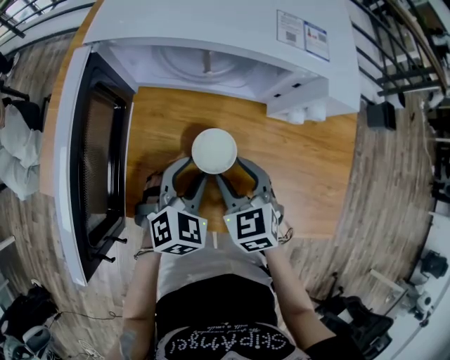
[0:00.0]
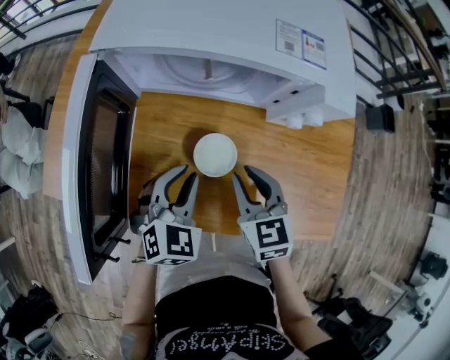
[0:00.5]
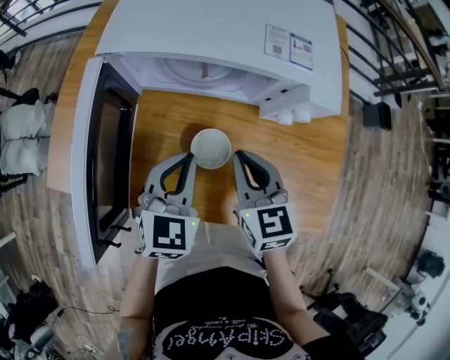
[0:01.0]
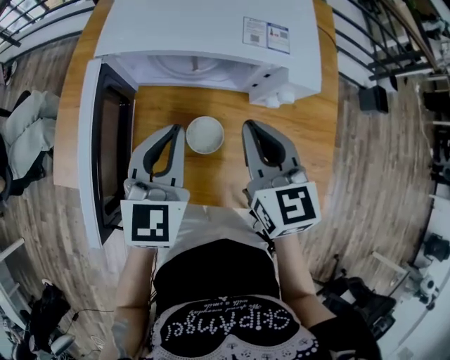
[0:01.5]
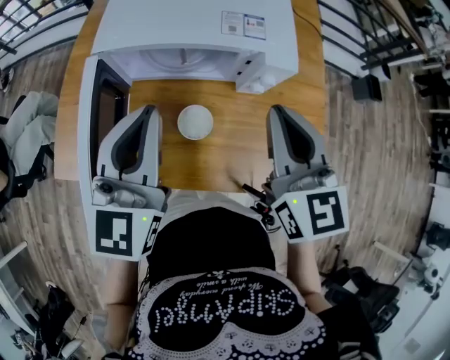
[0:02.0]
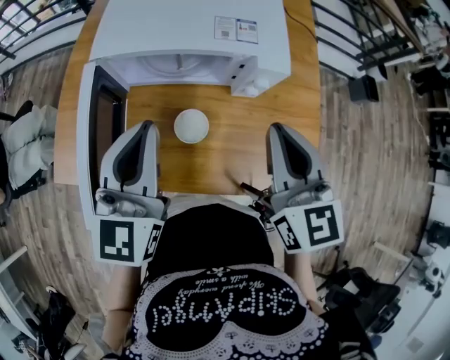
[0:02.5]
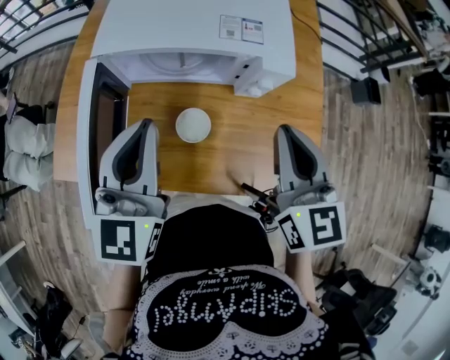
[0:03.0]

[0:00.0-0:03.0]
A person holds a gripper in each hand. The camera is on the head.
0:00.0 to 0:01.5: Both grippers travel together upward, approximately 20 cm. The right gripper rotates approximately 30 degrees, and closes its fingers. Meanwhile the left gripper changes its angle by roughly 40 degrees, and closes its fingers.
0:01.5 to 0:03.0: The left gripper travels upward by about 10 cm. Meanwhile the right gripper travels upward and to the right by approximately 10 cm.

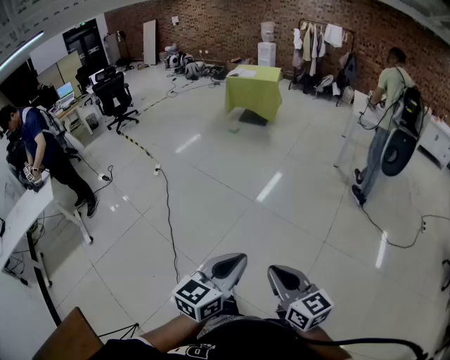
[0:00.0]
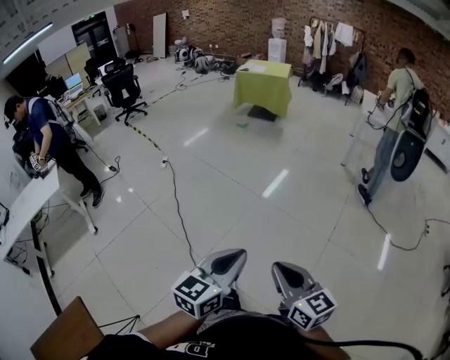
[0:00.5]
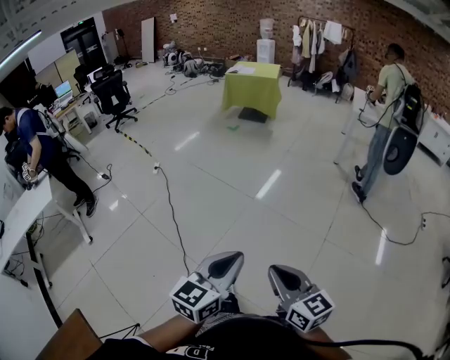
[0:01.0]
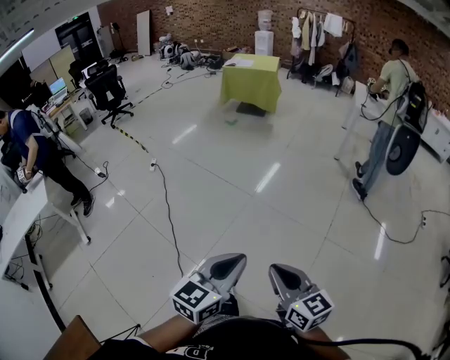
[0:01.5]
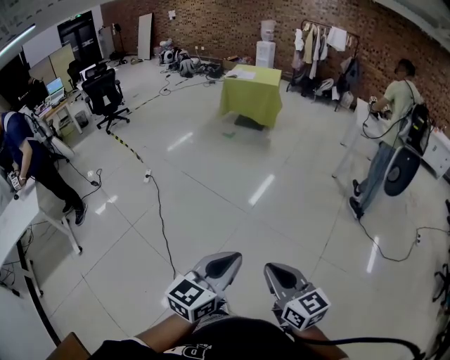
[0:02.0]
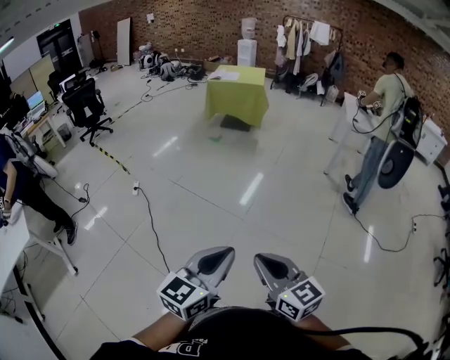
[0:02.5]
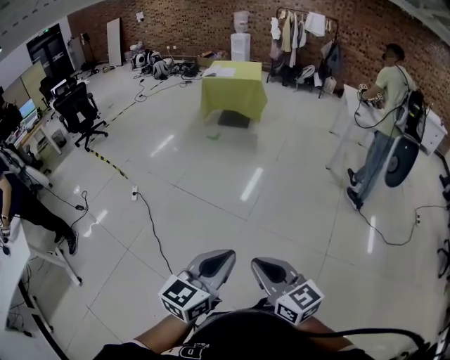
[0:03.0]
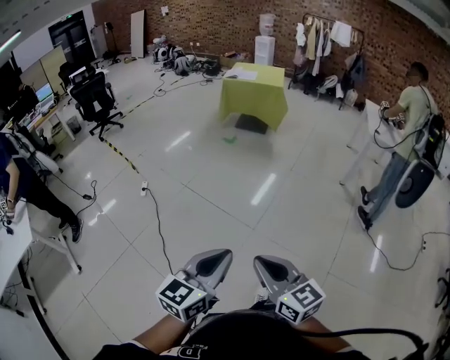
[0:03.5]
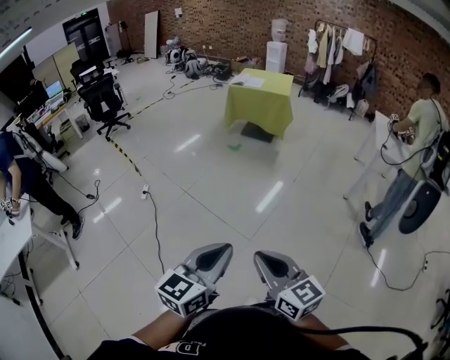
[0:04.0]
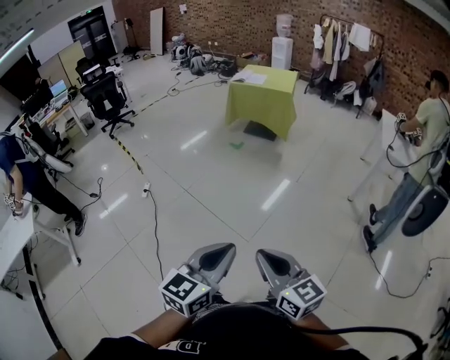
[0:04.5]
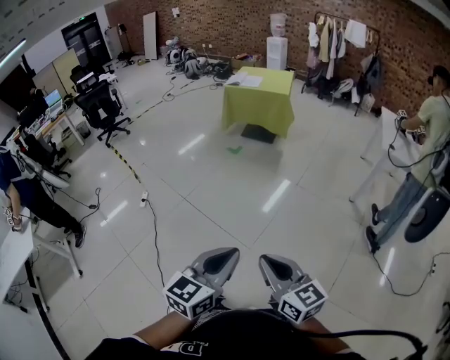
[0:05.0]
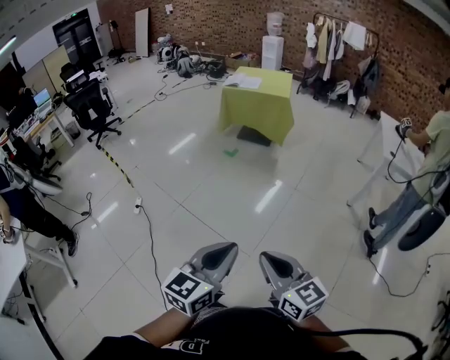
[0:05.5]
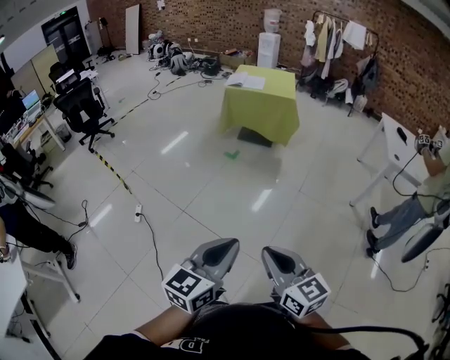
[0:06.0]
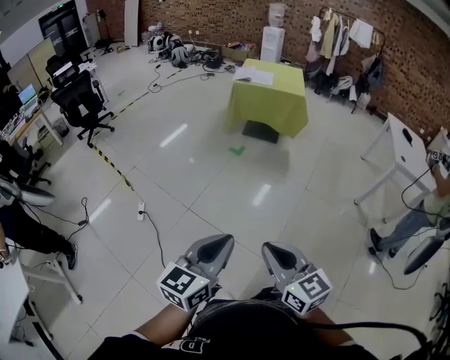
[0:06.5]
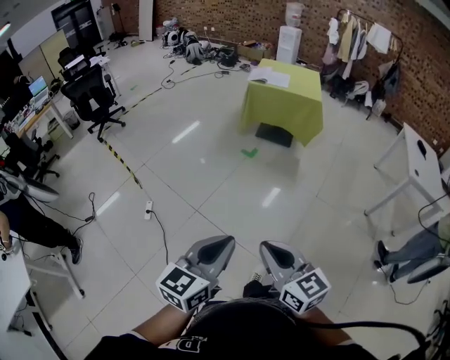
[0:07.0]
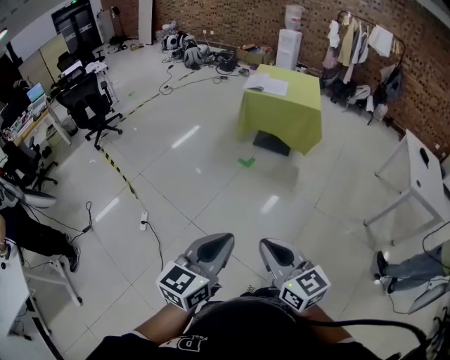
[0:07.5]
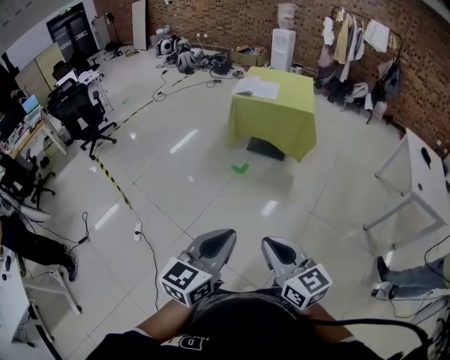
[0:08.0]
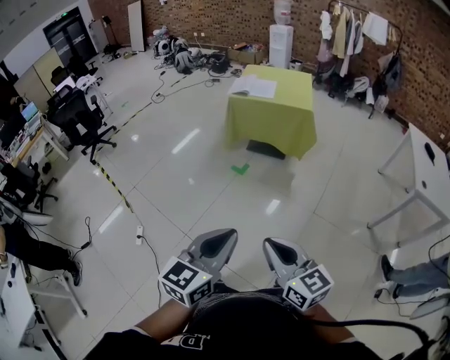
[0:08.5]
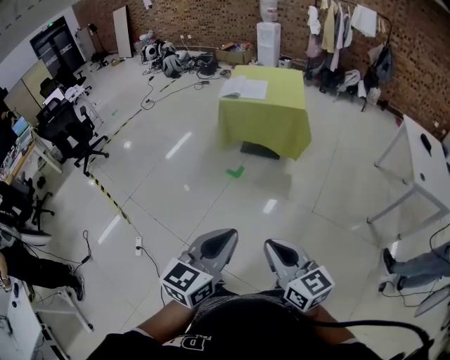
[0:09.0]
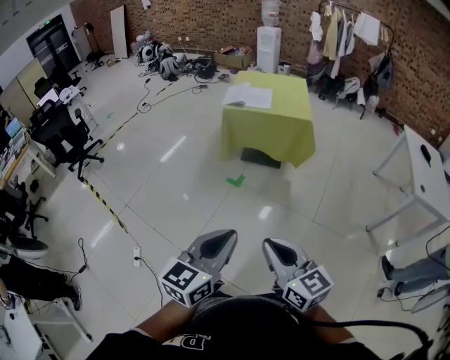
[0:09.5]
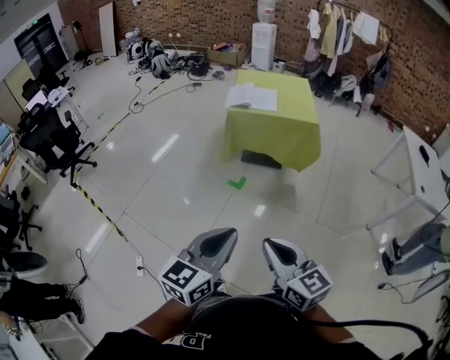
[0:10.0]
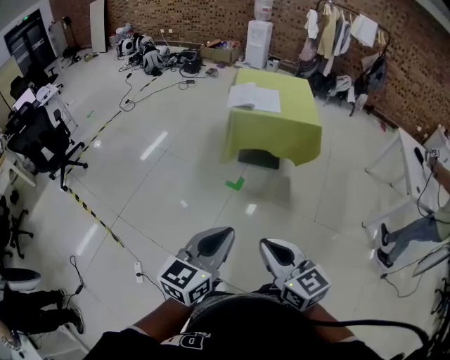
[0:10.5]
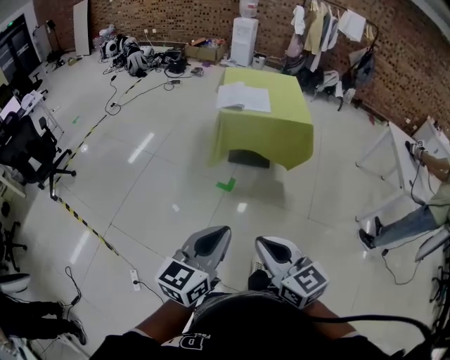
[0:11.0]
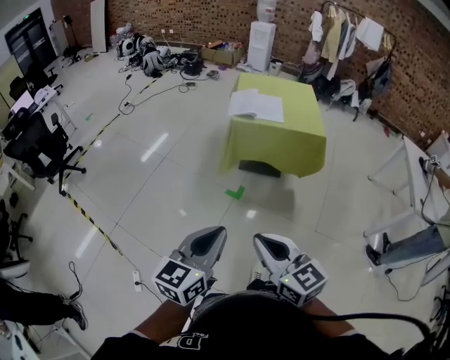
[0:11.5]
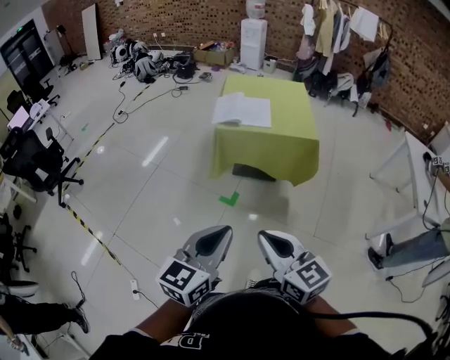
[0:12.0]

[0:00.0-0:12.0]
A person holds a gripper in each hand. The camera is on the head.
0:00.0 to 0:02.0: Both grippers move forward, some 15 cm.
0:02.0 to 0:04.0: The grippers both shift forward by about 30 cm.
0:04.0 to 0:06.0: The two grippers go about 30 cm forward.
0:06.0 to 0:08.0: The grippers both shift forward by approximately 30 cm.
0:08.0 to 0:10.0: The grippers both shift forward and to the left by about 25 cm.
0:10.0 to 0:12.0: Both grippers move forward, approximately 20 cm.

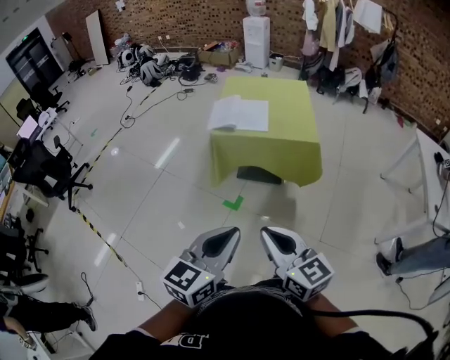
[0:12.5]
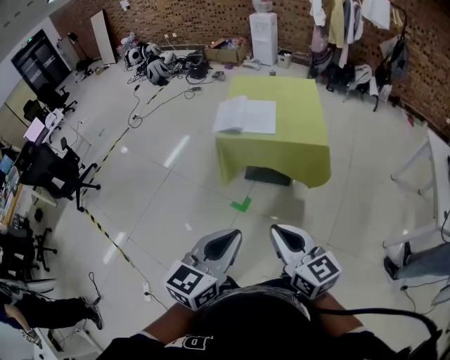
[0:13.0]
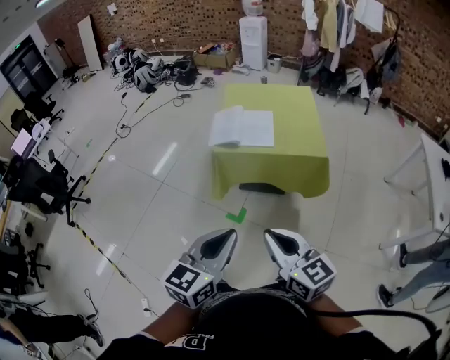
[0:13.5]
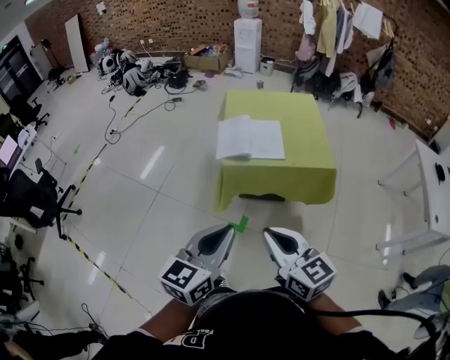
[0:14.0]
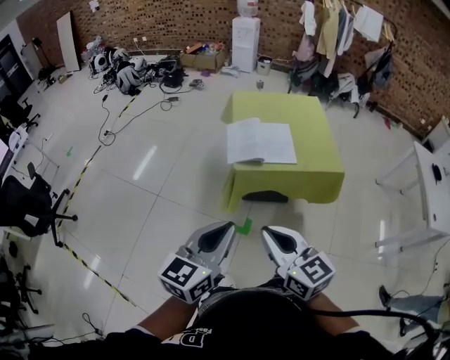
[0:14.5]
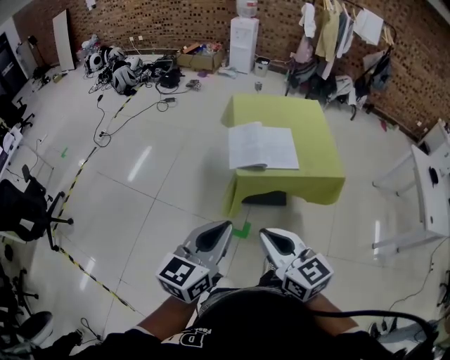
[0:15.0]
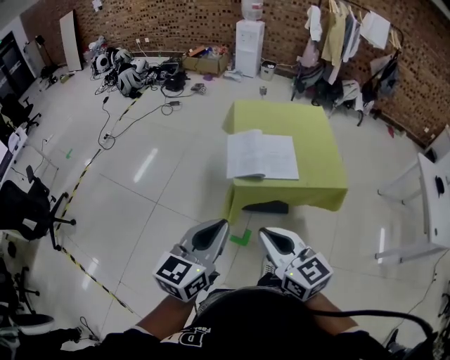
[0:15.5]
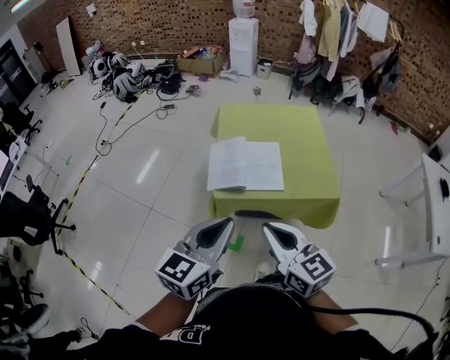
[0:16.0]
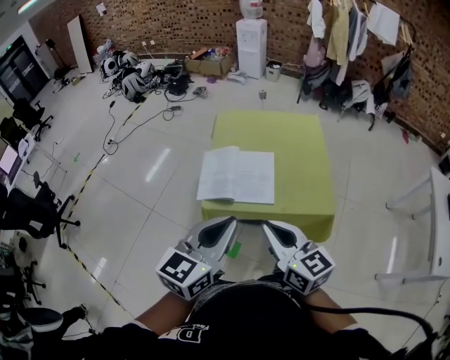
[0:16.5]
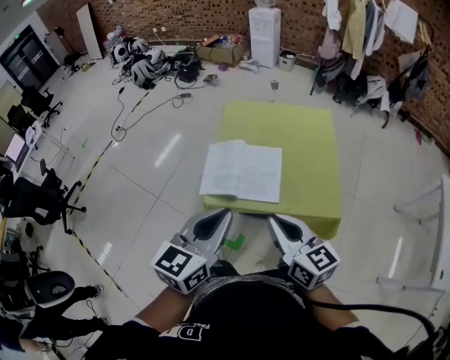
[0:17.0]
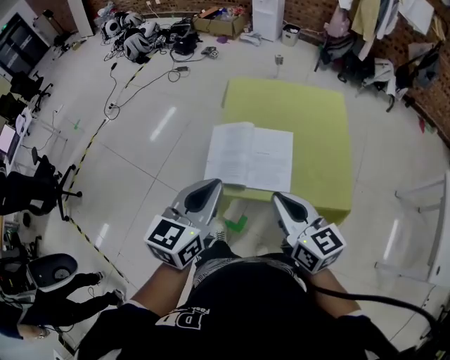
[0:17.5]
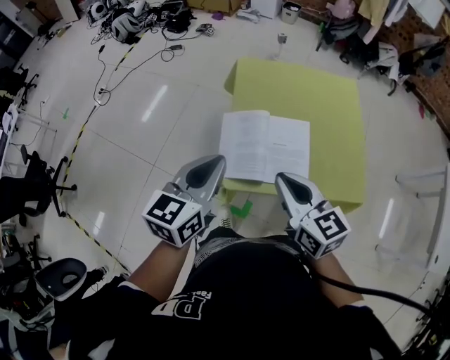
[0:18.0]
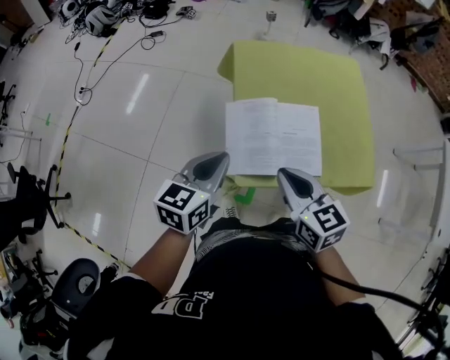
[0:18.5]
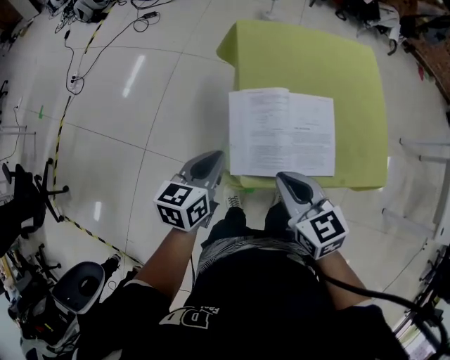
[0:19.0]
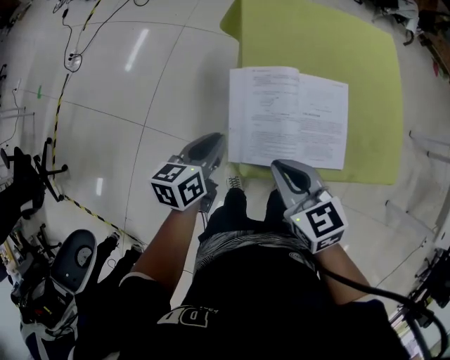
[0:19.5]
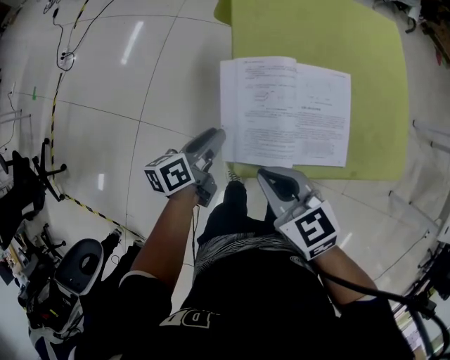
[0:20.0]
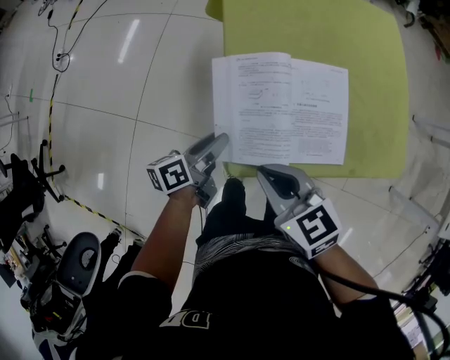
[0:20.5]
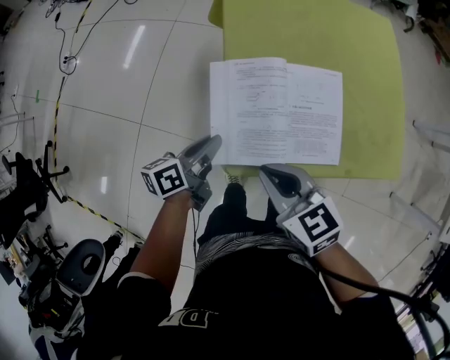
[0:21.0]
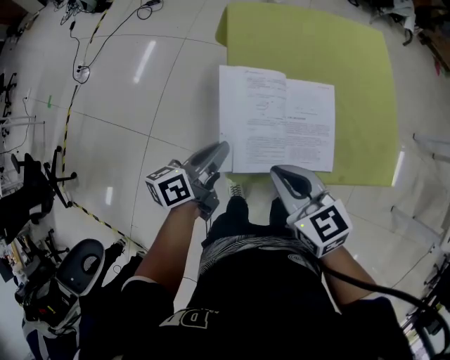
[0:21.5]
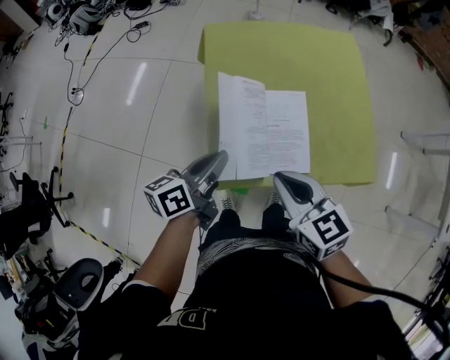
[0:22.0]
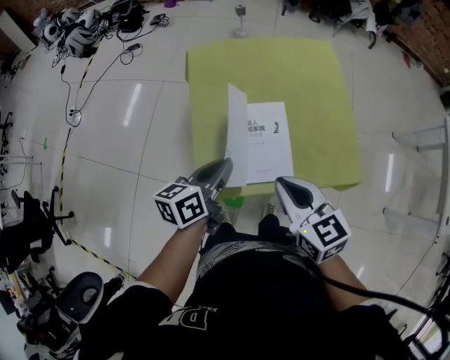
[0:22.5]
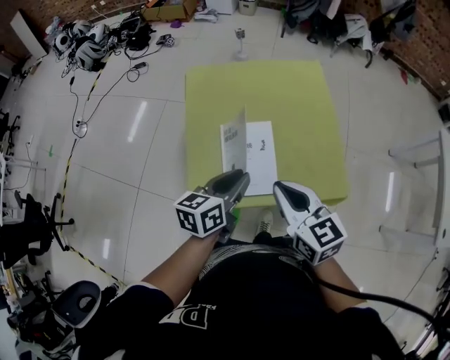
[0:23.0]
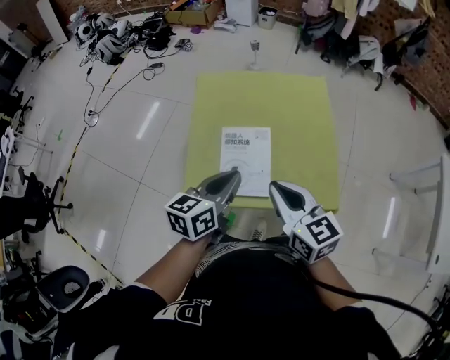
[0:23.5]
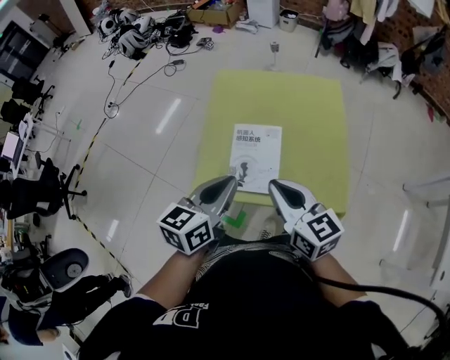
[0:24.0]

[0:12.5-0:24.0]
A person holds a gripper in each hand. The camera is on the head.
0:12.5 to 0:14.5: The two grippers go roughly 35 cm forward and to the left.
0:14.5 to 0:16.5: Both grippers move forward and to the right, roughly 30 cm.
0:16.5 to 0:18.5: The grippers both shift forward, to the left and downward by about 30 cm. The right gripper changes its angle by about 20 degrees.
0:18.5 to 0:20.0: The right gripper moves downward, about 10 cm; the left gripper moves downward, about 20 cm, twists some 40 degrees counterclockwise, seen from behind, and opens its fingers.
0:20.0 to 0:22.0: The left gripper moves upward and to the right, roughly 15 cm, and closes its fingers. Meanwhile the right gripper moves to the right and upward, approximately 15 cm.
0:22.0 to 0:24.0: The right gripper is displaced to the right and upward by approximately 15 cm, while the left gripper shifts about 20 cm to the right, upward and backward, and changes its angle by some 30 degrees.
